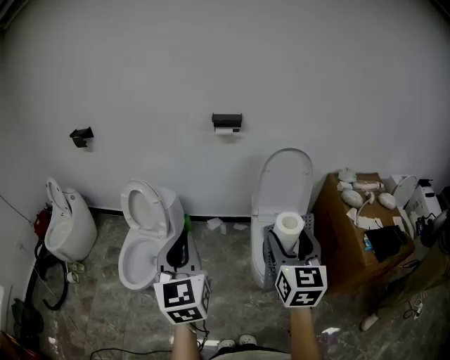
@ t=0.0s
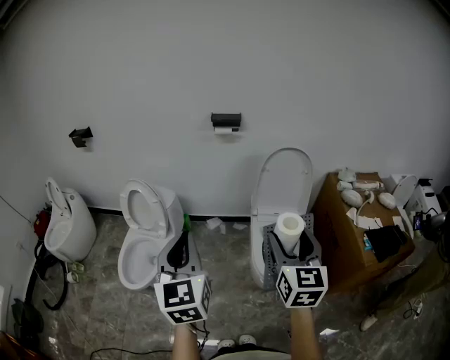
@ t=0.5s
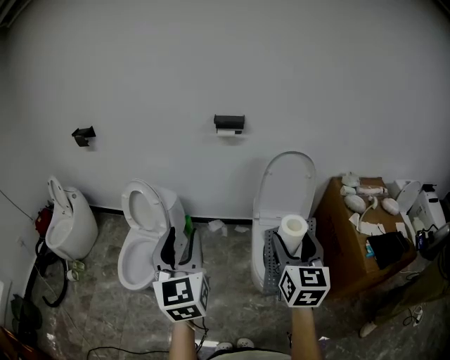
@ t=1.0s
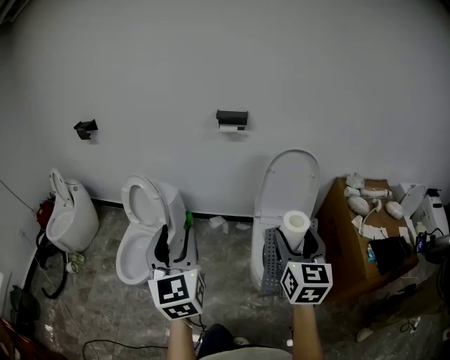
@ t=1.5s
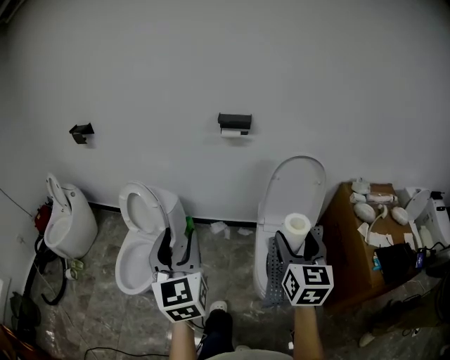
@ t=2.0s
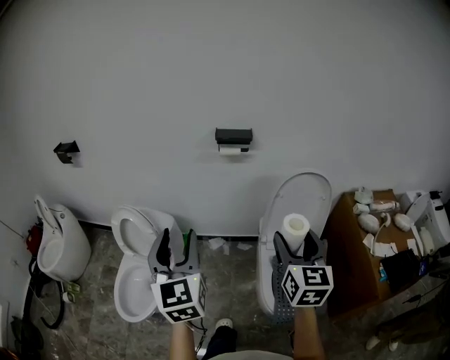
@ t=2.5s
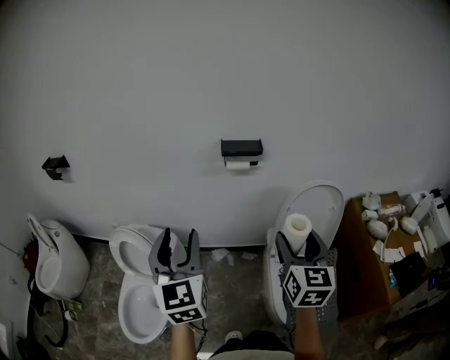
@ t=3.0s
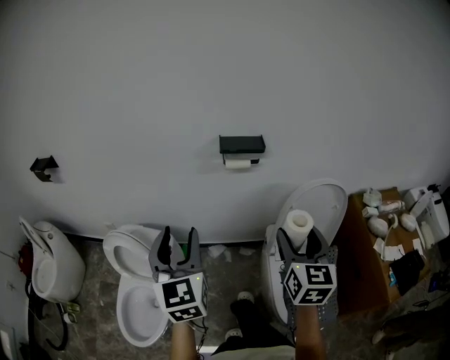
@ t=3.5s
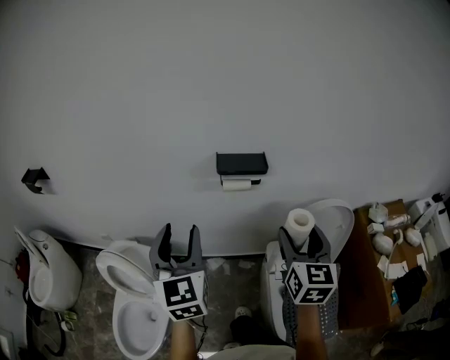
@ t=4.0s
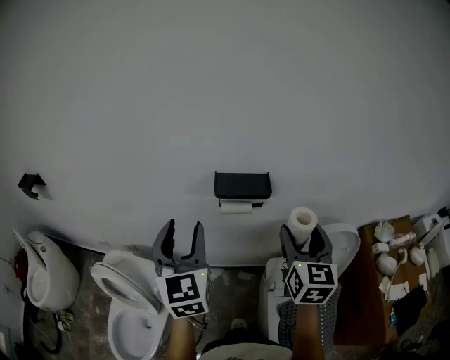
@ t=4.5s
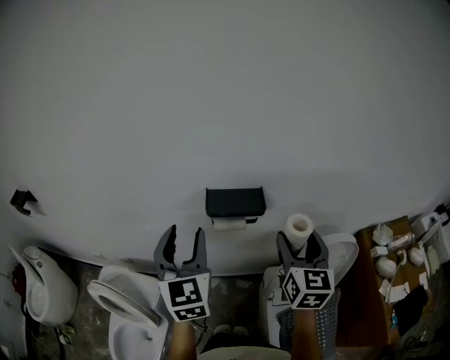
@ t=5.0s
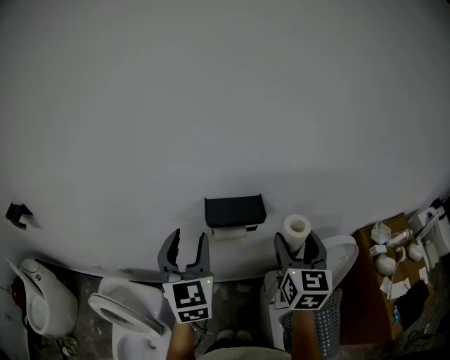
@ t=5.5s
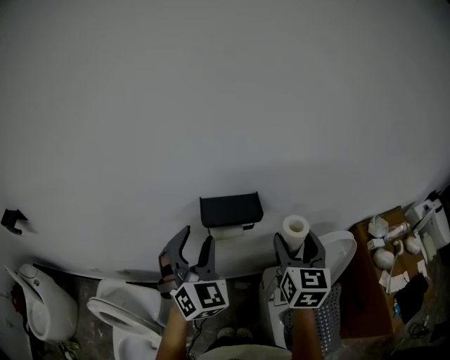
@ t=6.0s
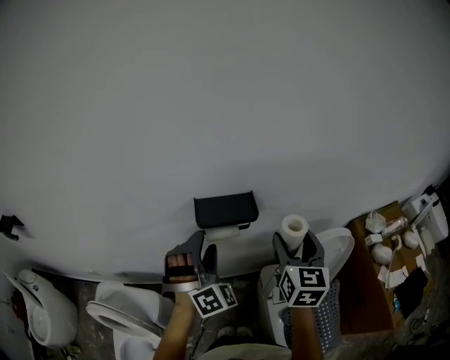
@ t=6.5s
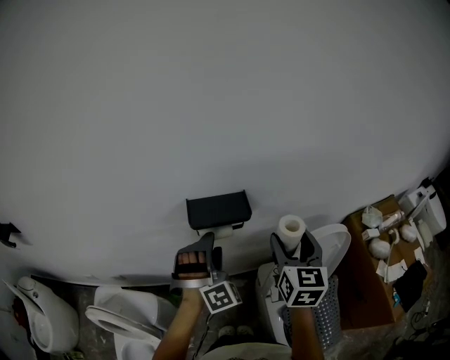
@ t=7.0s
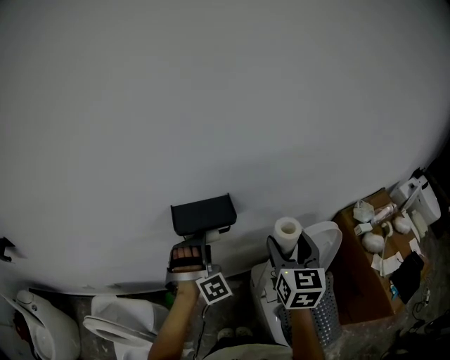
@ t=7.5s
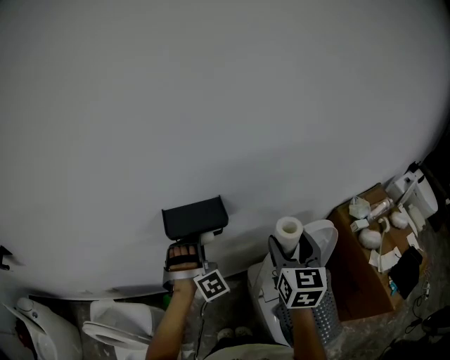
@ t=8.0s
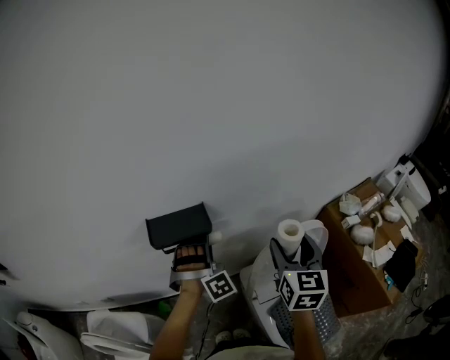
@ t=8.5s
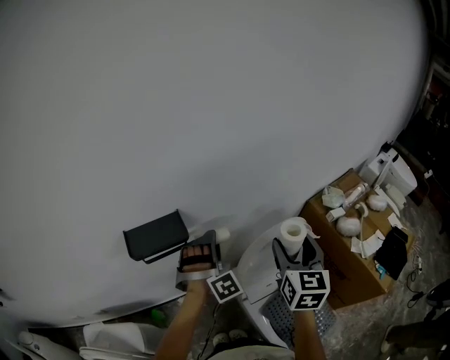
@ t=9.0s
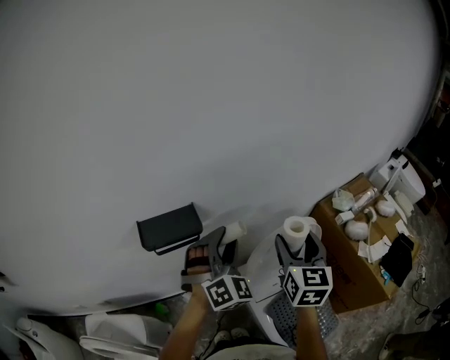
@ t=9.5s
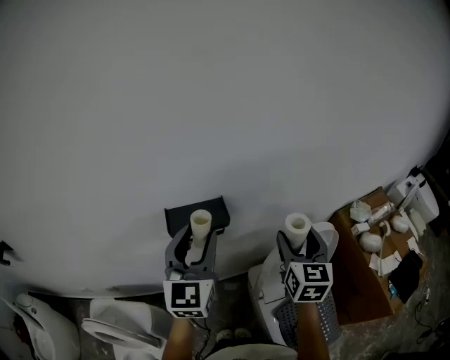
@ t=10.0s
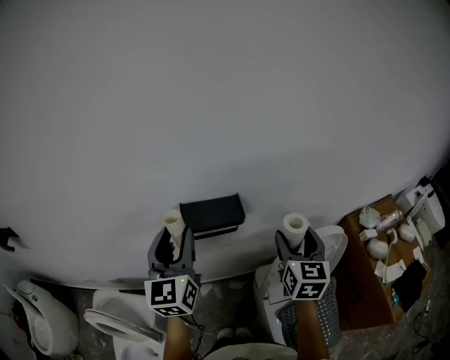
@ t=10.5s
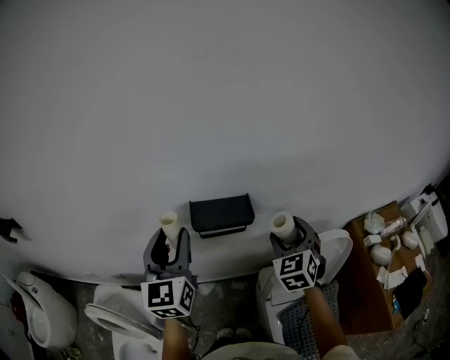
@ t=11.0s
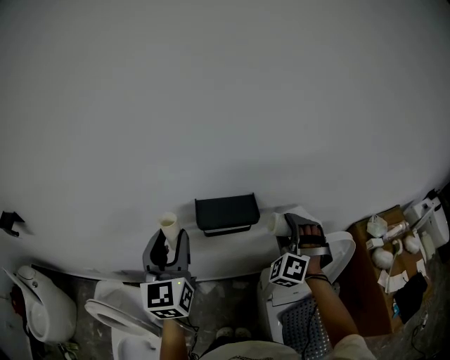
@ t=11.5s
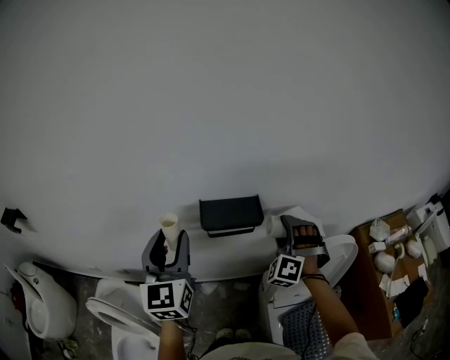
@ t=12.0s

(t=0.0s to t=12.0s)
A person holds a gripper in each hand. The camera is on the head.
t=0.0s - t=2.0s: The two grippers go roughly 10 cm forward. The left gripper opens.
t=2.0s - t=4.0s: The two grippers travel together, forward, approximately 40 cm.
t=4.0s - t=6.0s: The left gripper travels forward and to the right by some 20 cm, and turns by some 40 degrees; the right gripper shifts about 15 cm forward.
t=6.0s - t=8.0s: The left gripper heads downward, to the right and forward, covering roughly 15 cm, and rolls clockwise, seen from behind, by roughly 50 degrees; the right gripper shifts about 5 cm to the right.
t=8.0s - t=10.0s: The right gripper reaches approximately 10 cm to the right, then returns; the left gripper heads upward, covering approximately 15 cm, travels to the right and back again, some 15 cm each way, and rotates around the line of its fingers by some 80 degrees, counterclockwise from behind.
t=10.0s - t=12.0s: The left gripper is displaced to the left by roughly 15 cm. Meanwhile the right gripper moves to the left, downward and forward, approximately 15 cm, and rotates around the line of its fingers by approximately 90 degrees, counterclockwise from behind.

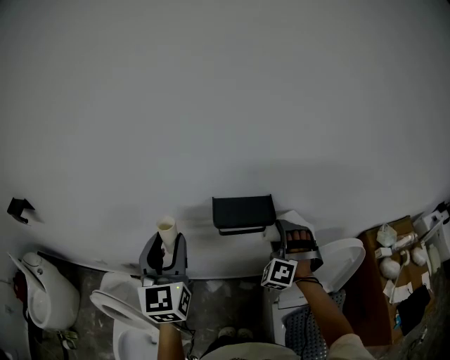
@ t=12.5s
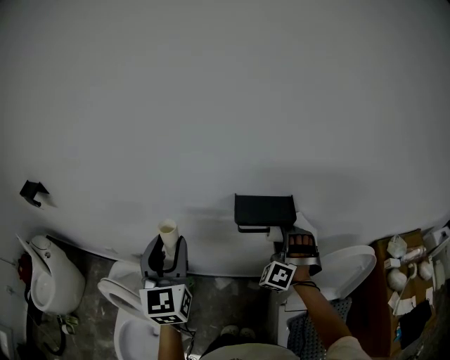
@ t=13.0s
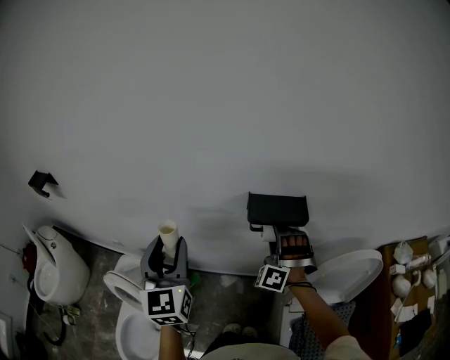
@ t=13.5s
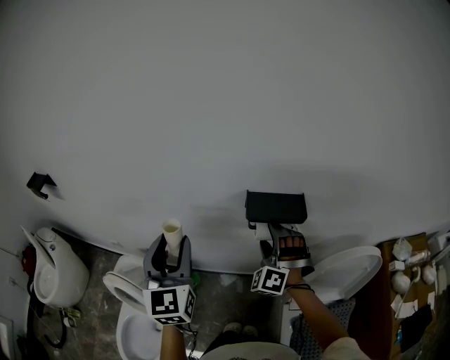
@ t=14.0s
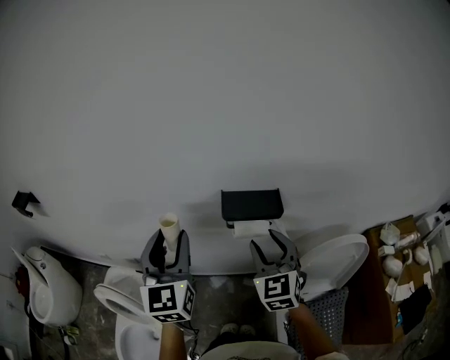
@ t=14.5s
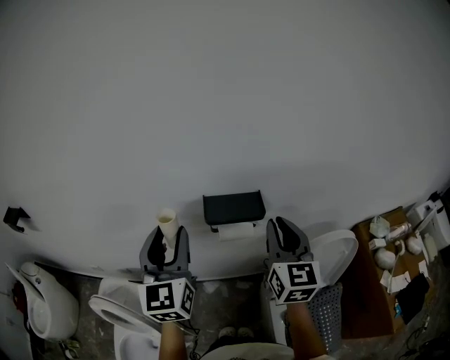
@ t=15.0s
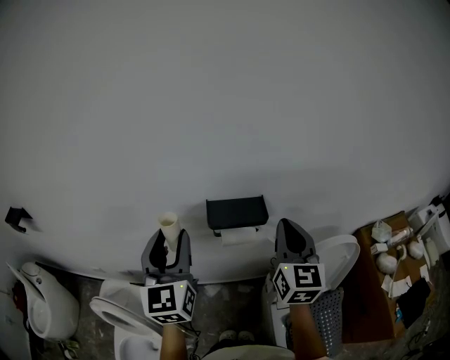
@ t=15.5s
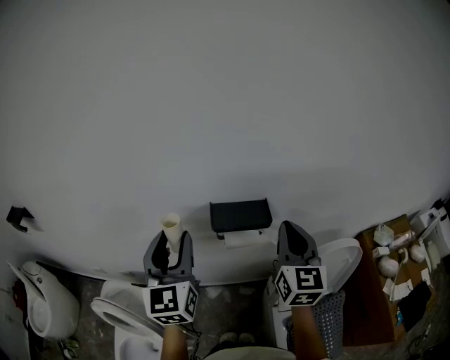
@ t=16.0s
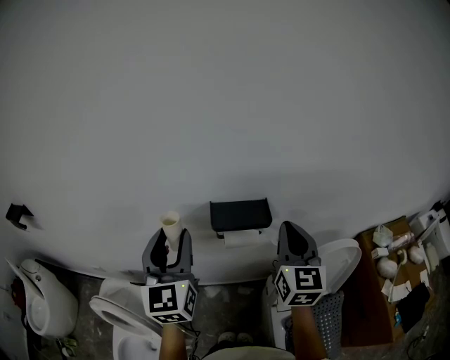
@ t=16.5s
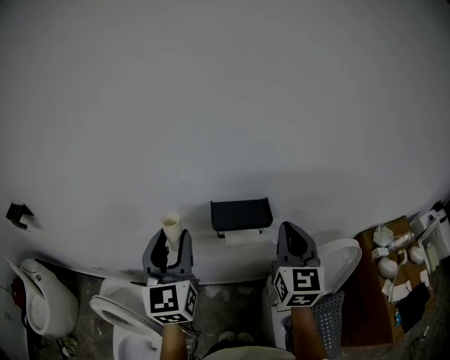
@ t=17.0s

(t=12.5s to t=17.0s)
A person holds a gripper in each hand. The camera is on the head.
t=12.5s - t=14.5s: The right gripper moves to the left, upward and backward, roughly 15 cm, and rotates around the line of its fingers by roughly 60 degrees, clockwise from behind. Meanwhile the left gripper goes to the left and returns, roughly 10 cm each way.
t=14.5s - t=17.0s: The right gripper heads to the right and upward, covering about 10 cm, rotates approximately 30 degrees, and closes up.

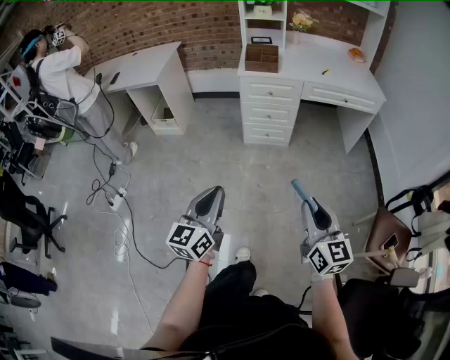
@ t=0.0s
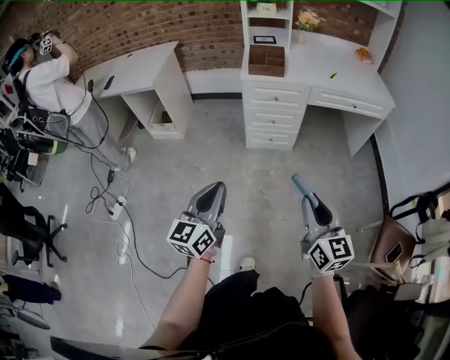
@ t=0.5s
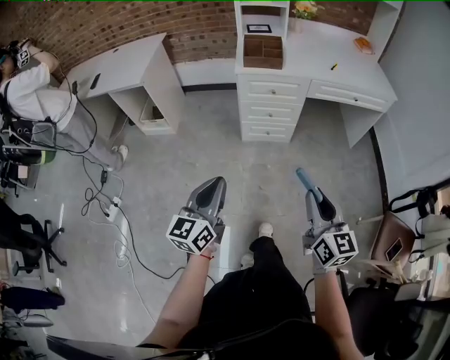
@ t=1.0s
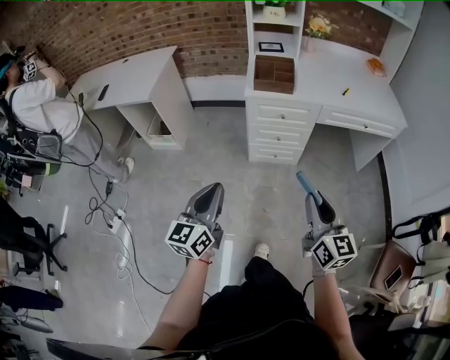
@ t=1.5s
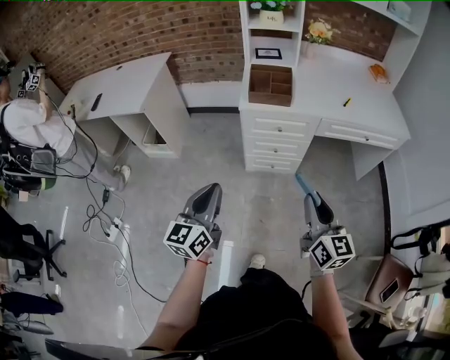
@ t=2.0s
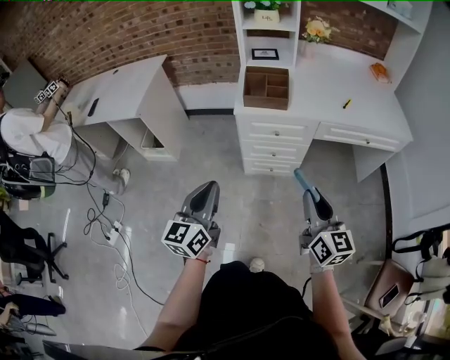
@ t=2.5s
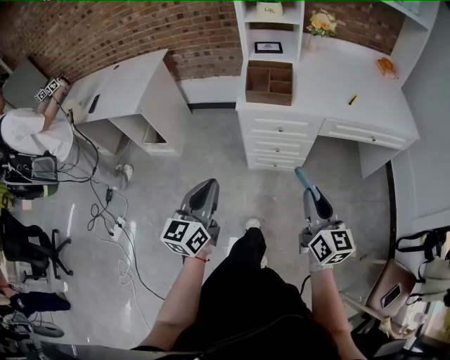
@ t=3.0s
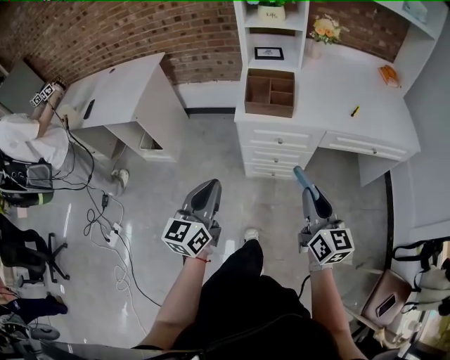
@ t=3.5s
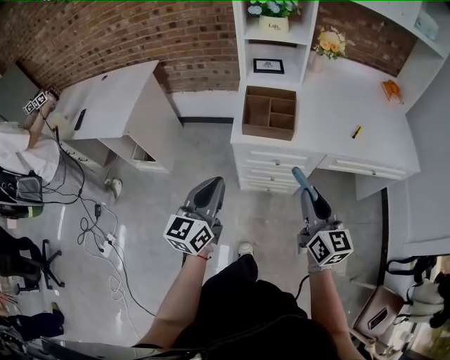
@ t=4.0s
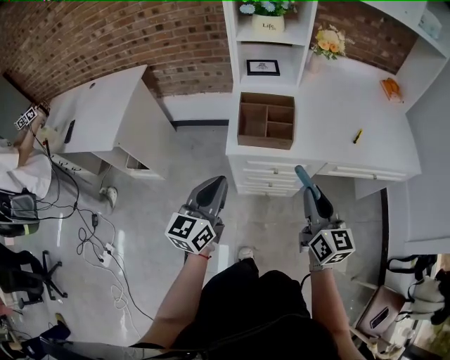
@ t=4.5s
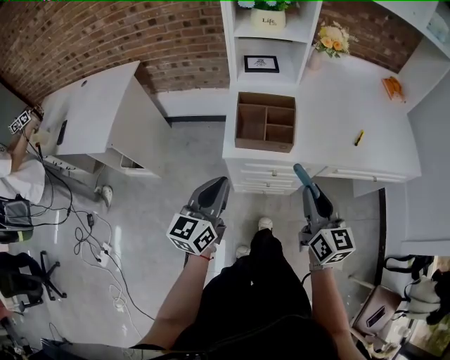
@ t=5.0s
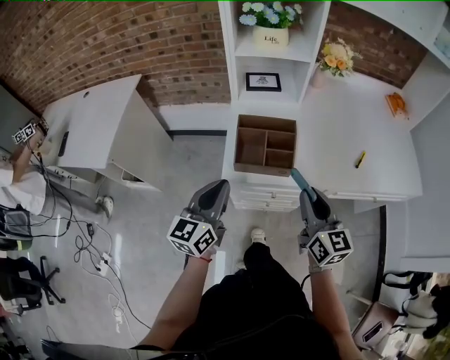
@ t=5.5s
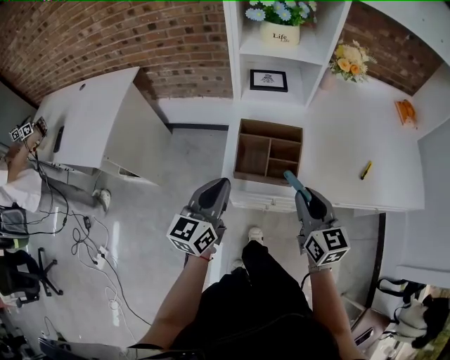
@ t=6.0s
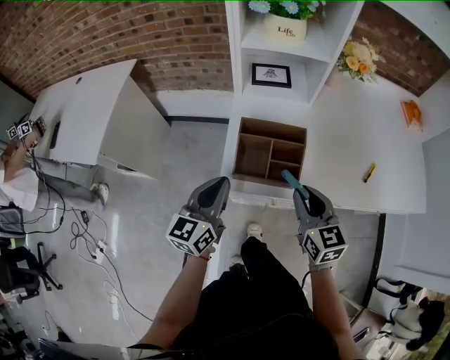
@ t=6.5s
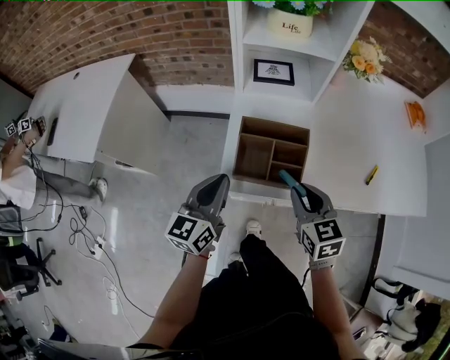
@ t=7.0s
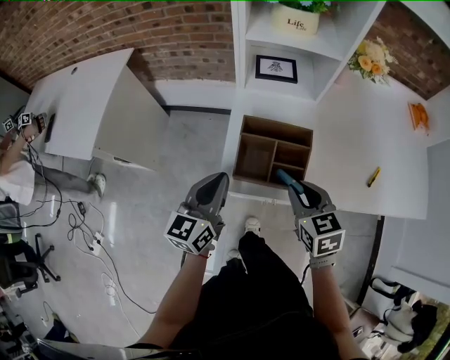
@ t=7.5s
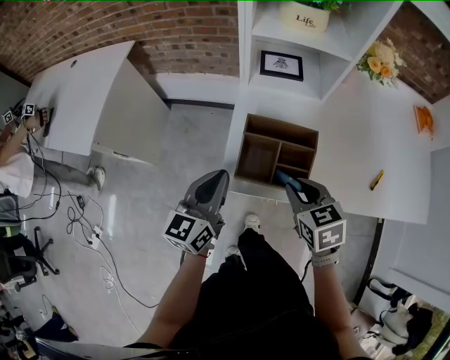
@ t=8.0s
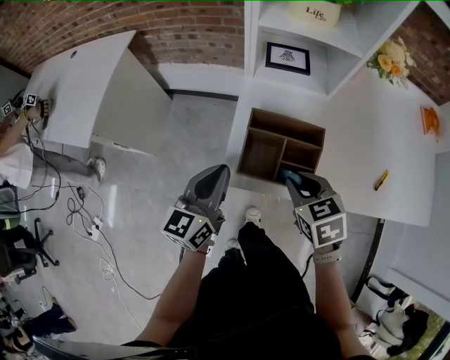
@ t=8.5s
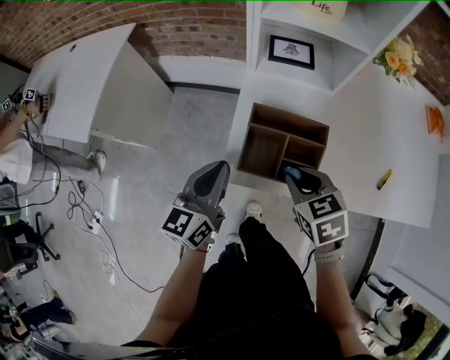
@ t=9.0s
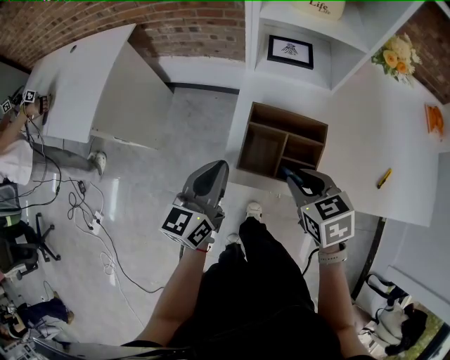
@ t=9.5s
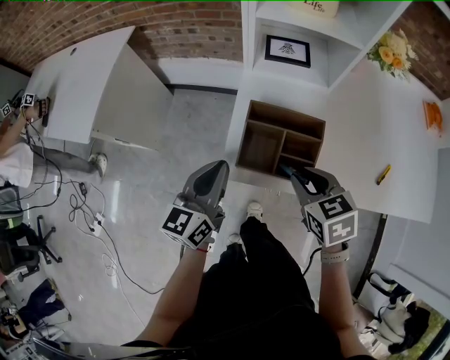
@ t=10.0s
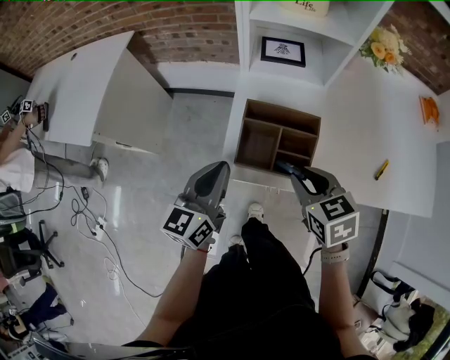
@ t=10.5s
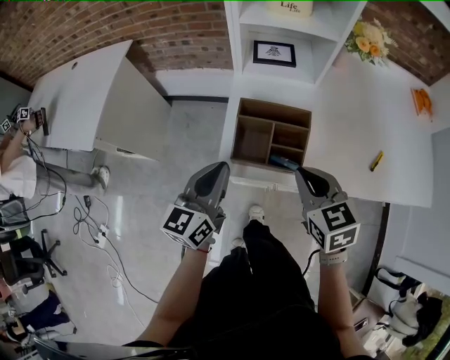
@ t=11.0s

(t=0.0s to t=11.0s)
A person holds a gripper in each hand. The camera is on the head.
t=0.0s - t=2.0s: The grippers both shift forward by about 35 cm.
t=2.0s - t=3.5s: The grippers both shift forward by approximately 10 cm.
t=3.5s - t=5.5s: Both grippers travel together forward, some 25 cm.
t=5.5s - t=7.5s: The left gripper shifts some 10 cm forward, while the right gripper travels forward and downward by approximately 15 cm, and tips its fingers downward by some 30 degrees.
t=7.5s - t=9.0s: The grippers stay close to where they were, moving slightly.
t=9.0s - t=11.0s: The right gripper moves upward, roughly 5 cm.
